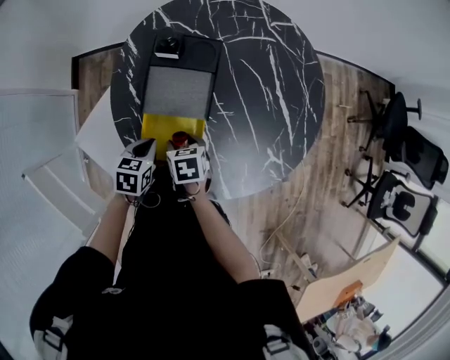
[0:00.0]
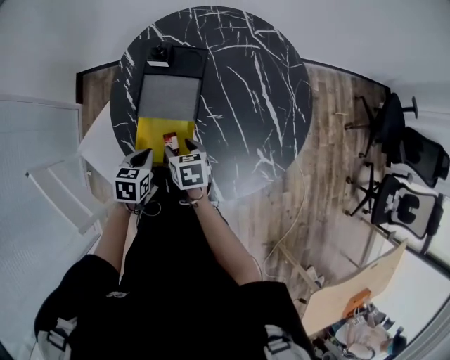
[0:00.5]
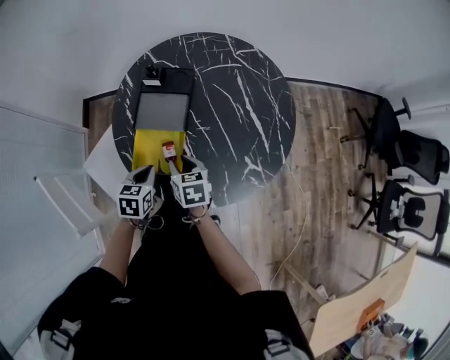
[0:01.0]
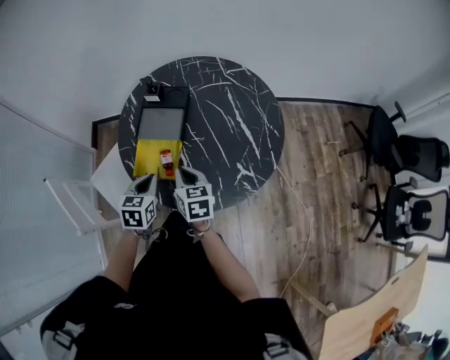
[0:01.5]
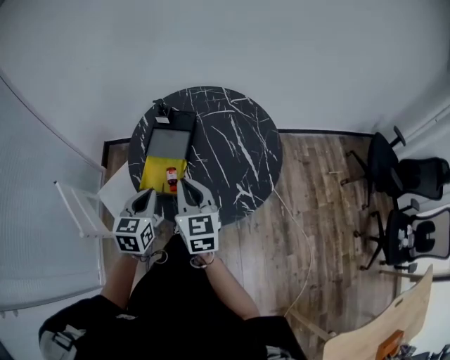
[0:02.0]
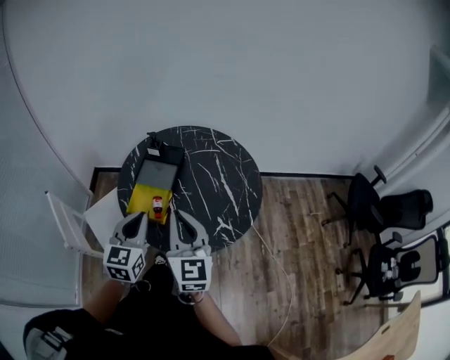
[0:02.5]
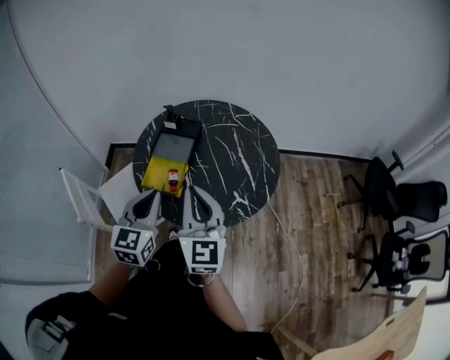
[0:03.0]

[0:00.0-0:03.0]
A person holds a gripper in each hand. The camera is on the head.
0:00.0 to 0:01.5: The right gripper travels upward, to the right and backward by roughly 20 cm, angles its fingers upward, by approximately 30 degrees, and closes up. The left gripper goes approximately 20 cm upward, backward and to the right, and changes its angle by some 20 degrees.
0:01.5 to 0:03.0: The two grippers go some 25 cm upward and backward. The right gripper tilts its fingers some 30 degrees upward, while the left gripper turns by roughly 30 degrees.

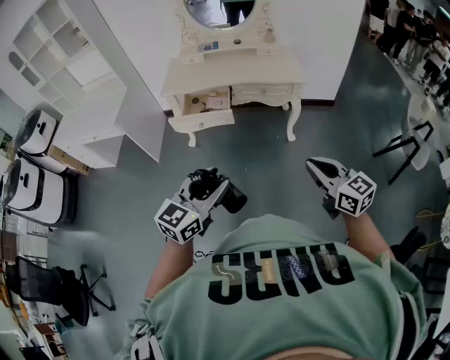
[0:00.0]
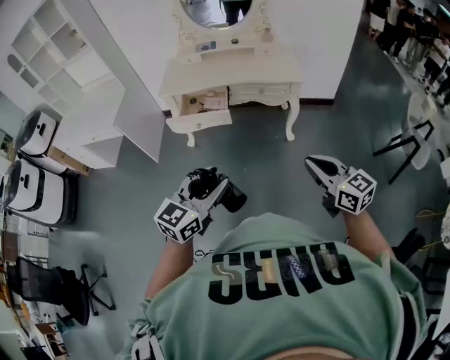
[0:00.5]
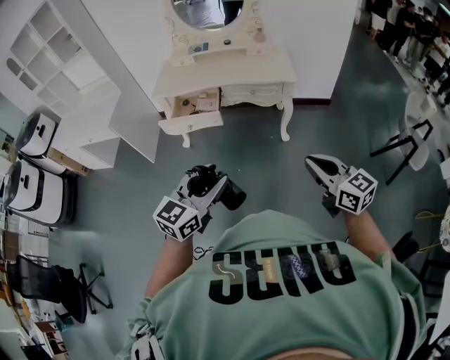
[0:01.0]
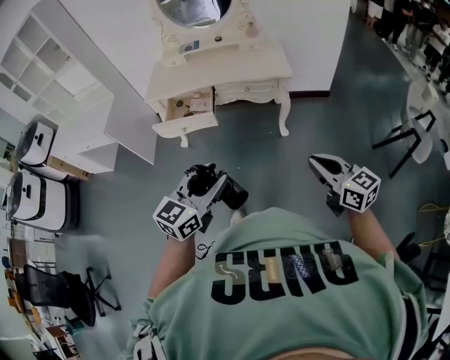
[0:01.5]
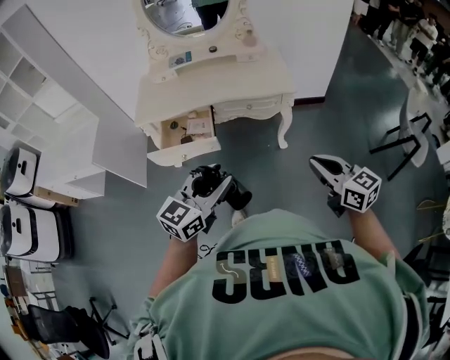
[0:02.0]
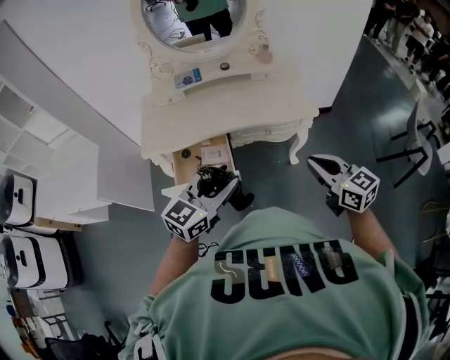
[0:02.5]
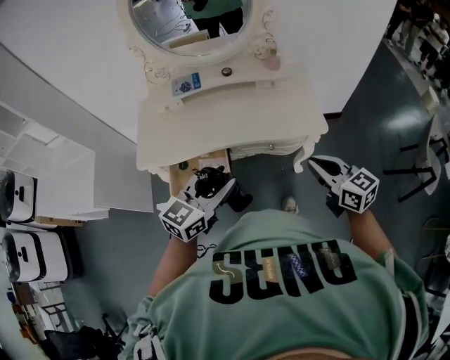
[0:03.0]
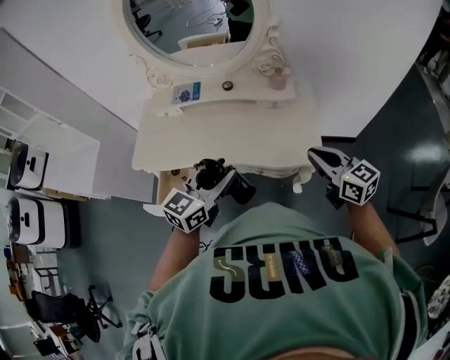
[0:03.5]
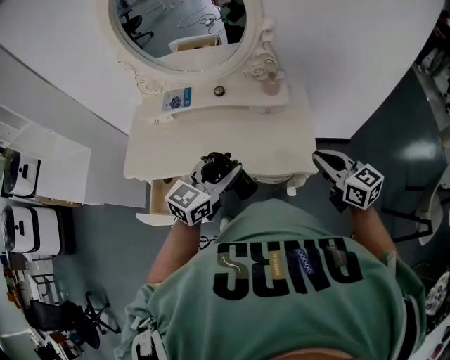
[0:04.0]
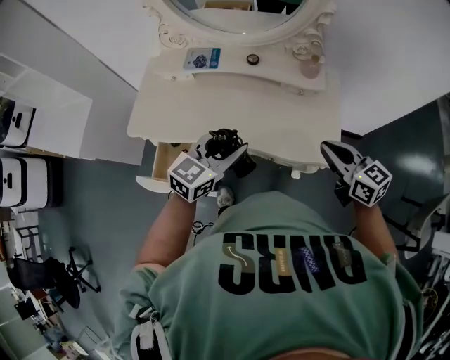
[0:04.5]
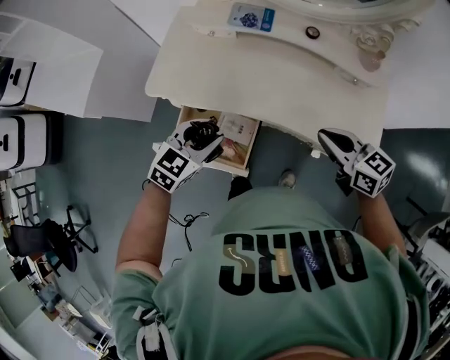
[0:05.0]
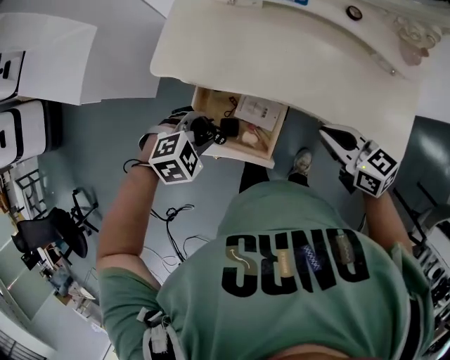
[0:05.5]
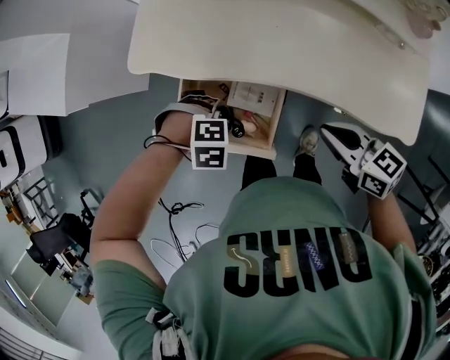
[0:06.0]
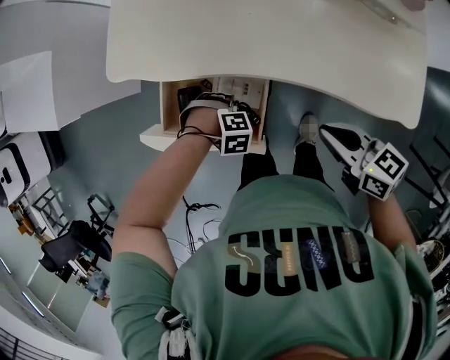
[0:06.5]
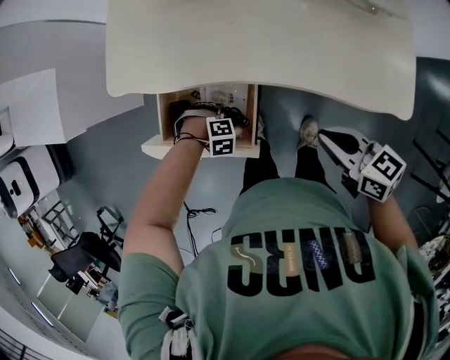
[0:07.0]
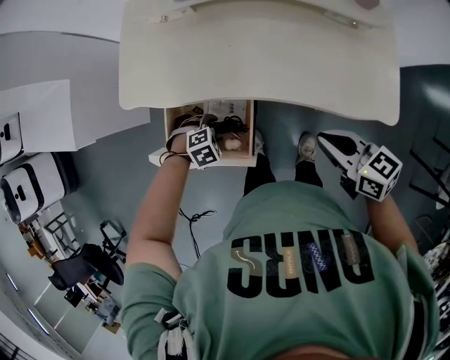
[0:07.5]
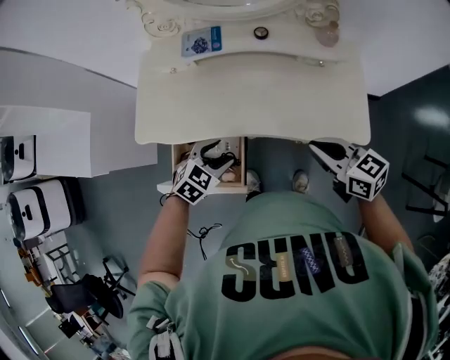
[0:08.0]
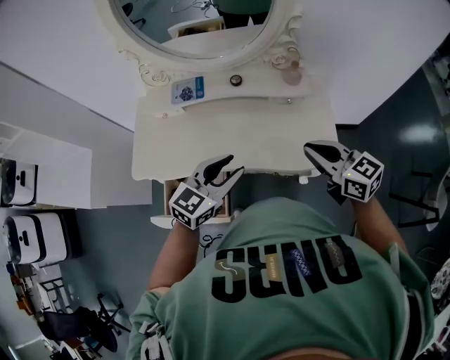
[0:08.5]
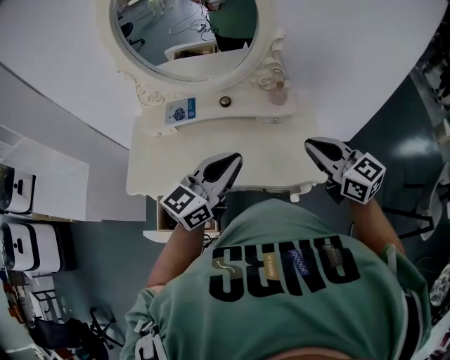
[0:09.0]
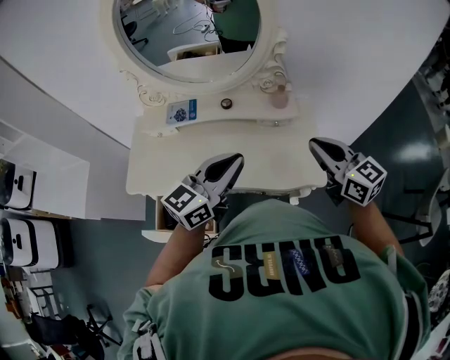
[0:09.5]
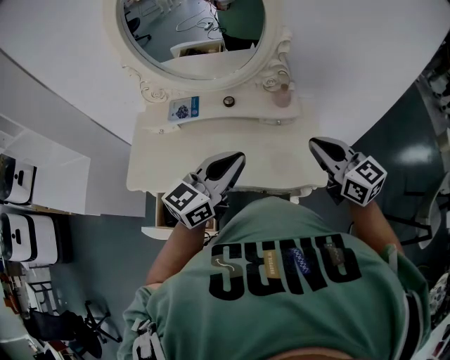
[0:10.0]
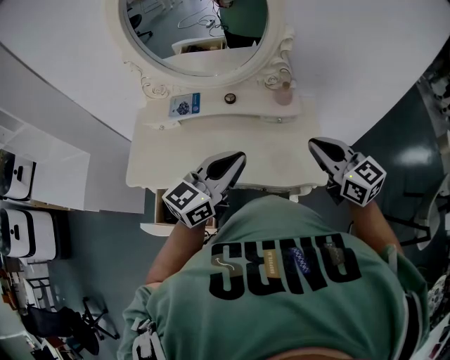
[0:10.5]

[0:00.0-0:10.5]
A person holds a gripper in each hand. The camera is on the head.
0:00.0 to 0:02.0: The grippers both shift forward by roughly 20 cm.
0:02.0 to 0:04.0: The pair of grippers is taken forward, roughly 50 cm.
0:04.0 to 0:06.5: The left gripper goes roughly 50 cm downward, and tips its fingers downward by some 70 degrees; the right gripper moves roughly 40 cm, and rotates some 30 degrees.
0:06.5 to 0:08.5: The left gripper moves upward, roughly 40 cm, tips its fingers upward by about 70 degrees, and opens, then closes again. Meanwhile the right gripper travels upward by some 25 cm, and swivels roughly 30 degrees.
0:08.5 to 0:10.5: The grippers both shift upward and to the right by some 10 cm. The left gripper turns by roughly 20 degrees, and closes up.

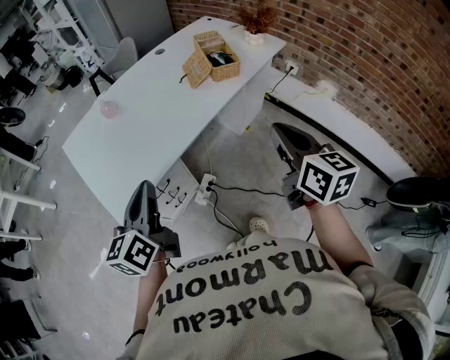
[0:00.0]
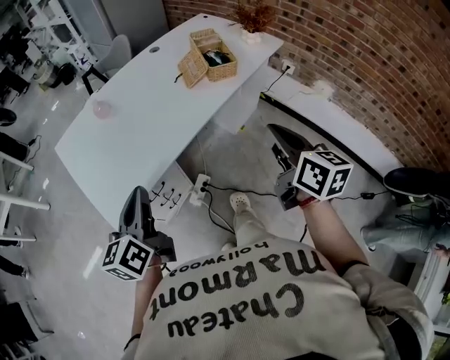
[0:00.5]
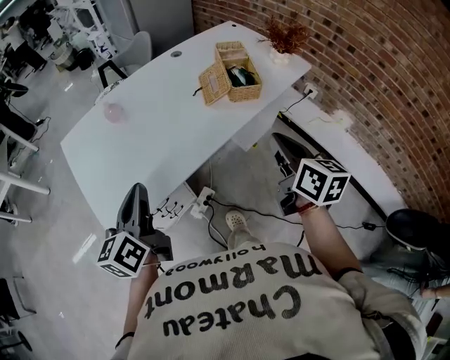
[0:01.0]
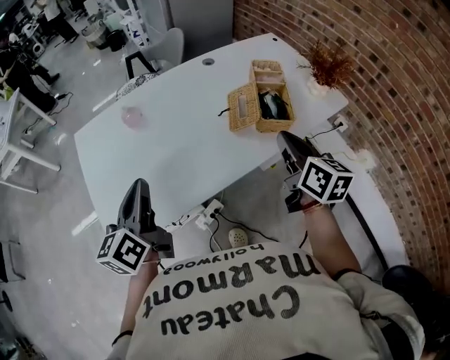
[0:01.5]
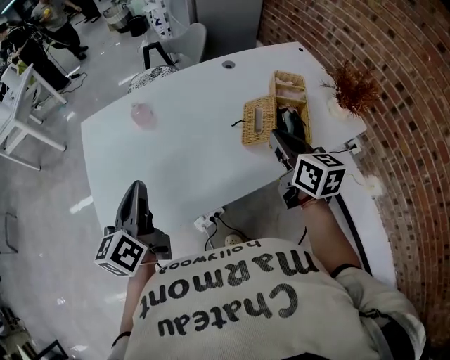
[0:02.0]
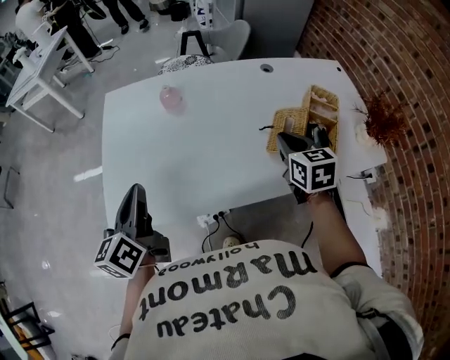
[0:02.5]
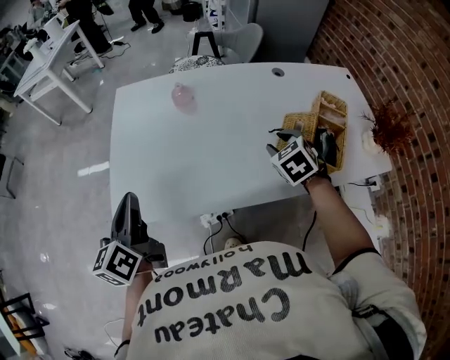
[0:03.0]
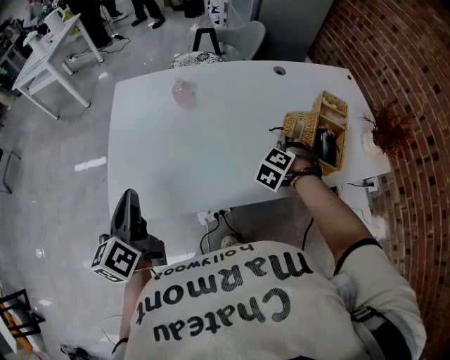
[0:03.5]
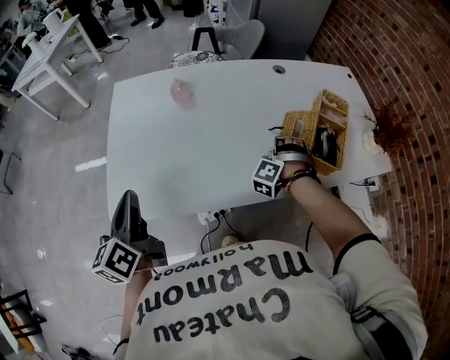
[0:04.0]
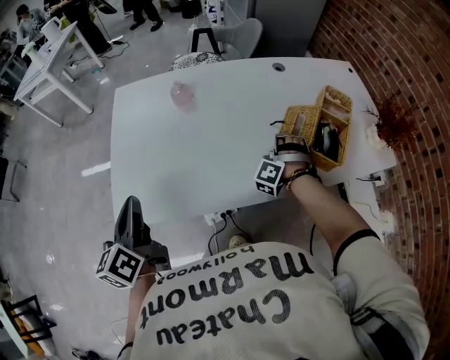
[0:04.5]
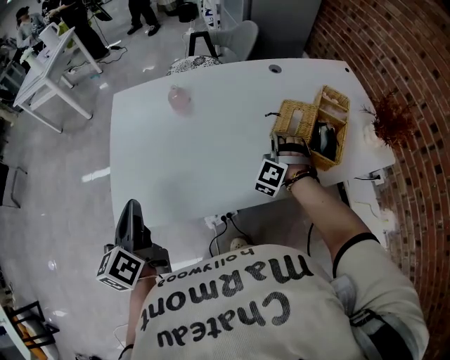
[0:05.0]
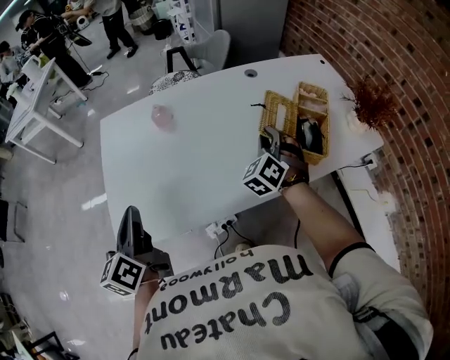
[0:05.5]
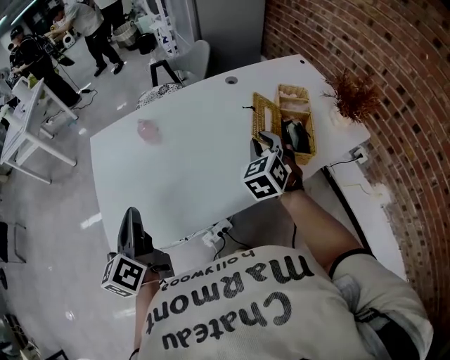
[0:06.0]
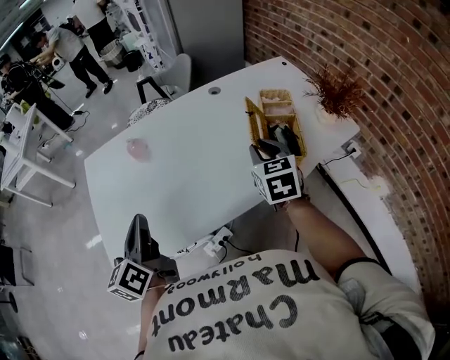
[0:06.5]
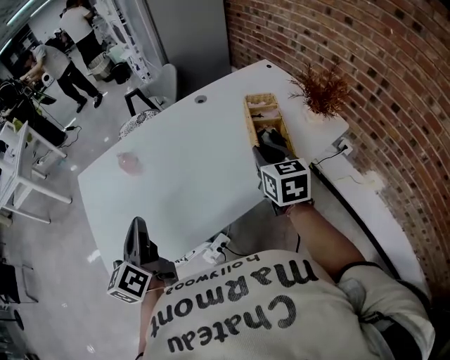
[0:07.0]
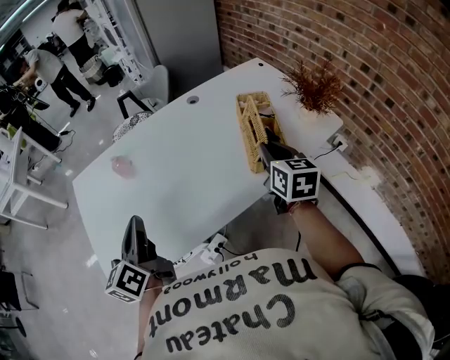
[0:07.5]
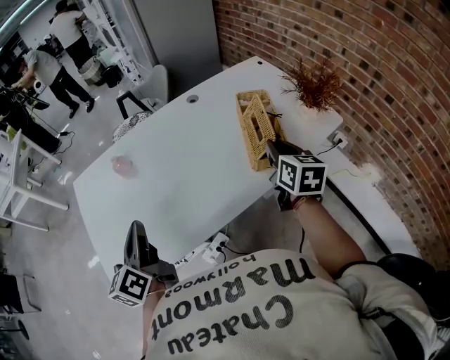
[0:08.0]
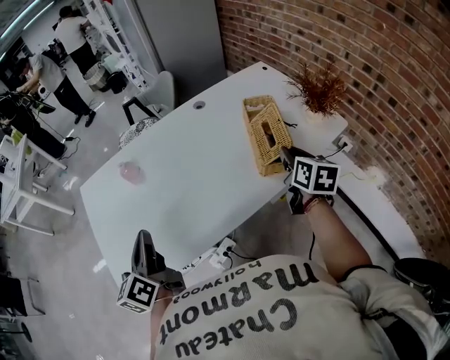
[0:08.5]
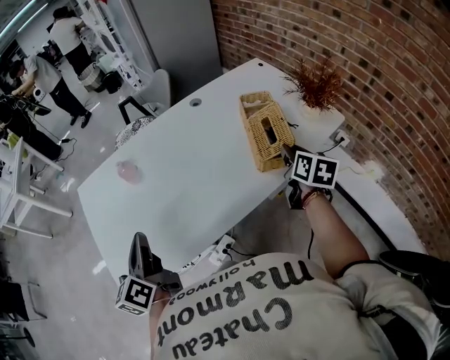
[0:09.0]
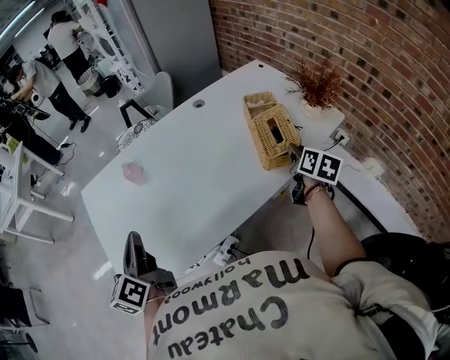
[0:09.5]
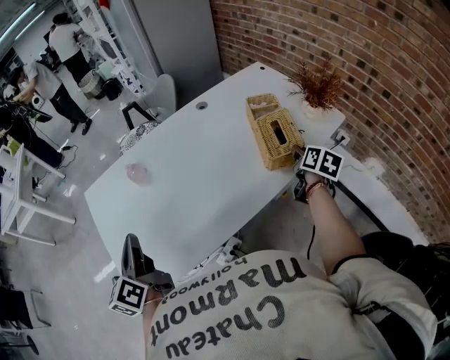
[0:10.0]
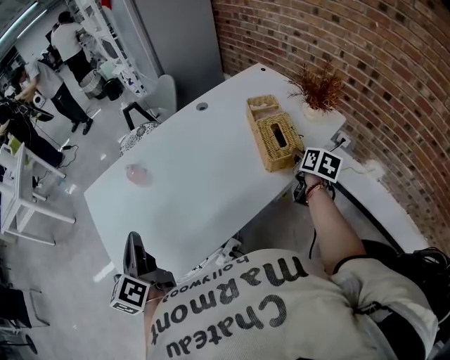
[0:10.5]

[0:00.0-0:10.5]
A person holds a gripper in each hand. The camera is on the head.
0:00.0 to 0:02.0: The left gripper moves about 20 cm, and swivels about 30 degrees. Meanwhile the right gripper changes place by about 40 cm, and swivels approximately 30 degrees.
0:02.0 to 0:04.0: The left gripper moves to the left and backward, approximately 15 cm, and turns by approximately 20 degrees. Meanwhile the right gripper goes about 20 cm downward, rotates around the line of its fingers by about 110 degrees, counterclockwise from behind, and opens.
0:04.0 to 0:06.5: The left gripper moves to the right and forward, approximately 15 cm, while the right gripper moves upward and to the right, roughly 20 cm, rolls clockwise, seen from behind, by roughly 90 degrees, and closes its fingers.
0:06.5 to 0:08.5: The right gripper travels to the right by approximately 15 cm, and turns by about 30 degrees.
0:08.5 to 0:10.5: The left gripper travels to the left by roughly 5 cm; the right gripper moves downward, roughly 5 cm, and rotates about 20 degrees.

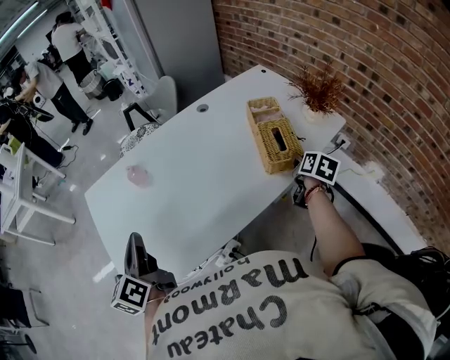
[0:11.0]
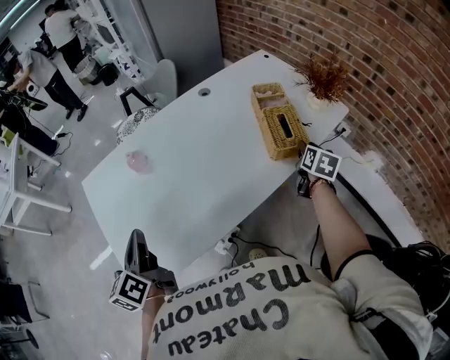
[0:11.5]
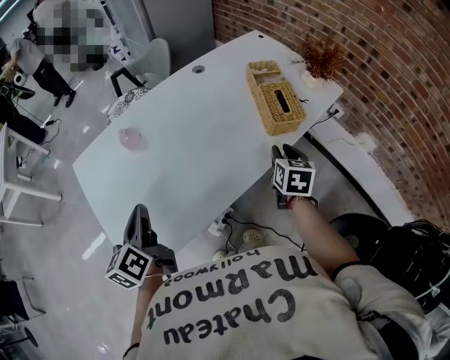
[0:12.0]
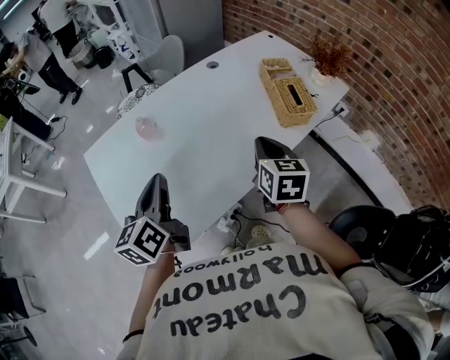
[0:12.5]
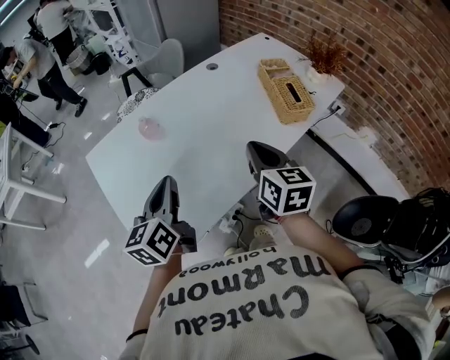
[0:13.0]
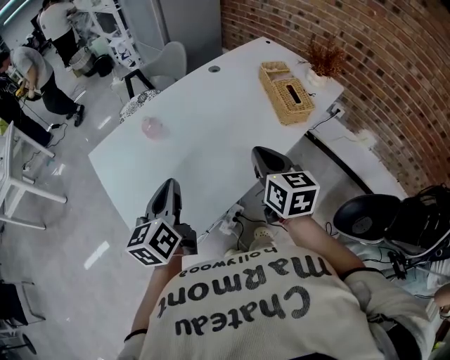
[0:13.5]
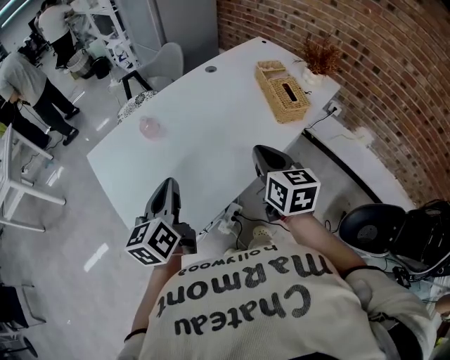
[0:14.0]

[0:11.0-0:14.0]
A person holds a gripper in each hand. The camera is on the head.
0:11.0 to 0:12.5: The right gripper shifts about 30 cm to the left and backward, rotates approximately 30 degrees, and closes.
0:12.5 to 0:14.0: The right gripper shifts about 5 cm backward.
